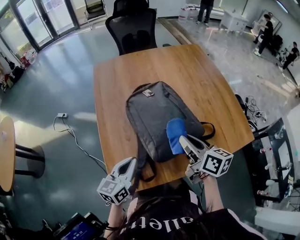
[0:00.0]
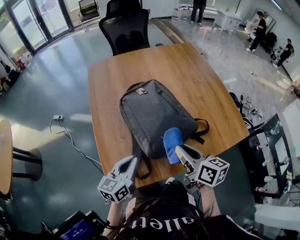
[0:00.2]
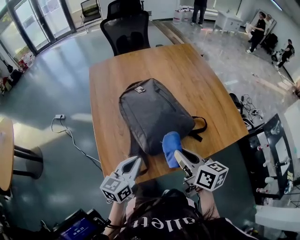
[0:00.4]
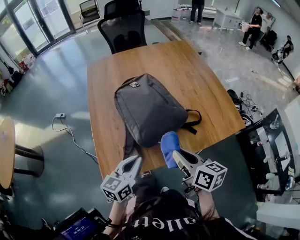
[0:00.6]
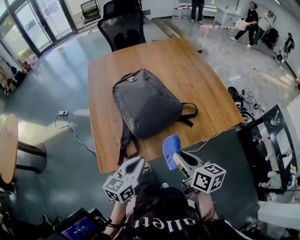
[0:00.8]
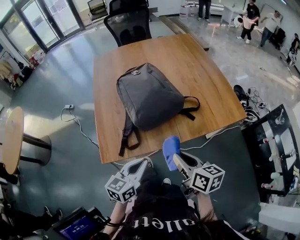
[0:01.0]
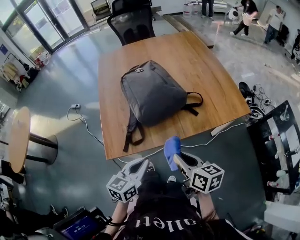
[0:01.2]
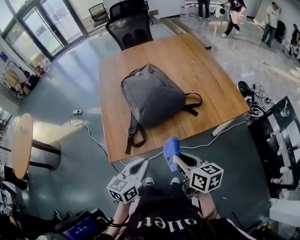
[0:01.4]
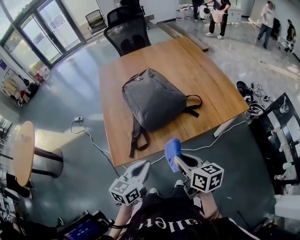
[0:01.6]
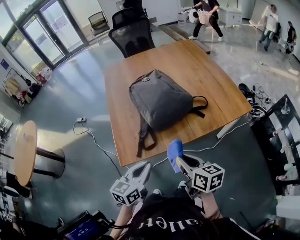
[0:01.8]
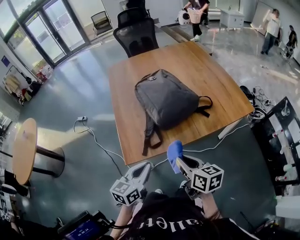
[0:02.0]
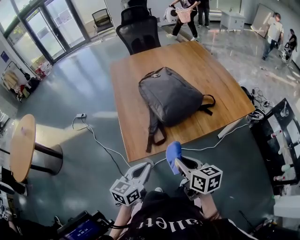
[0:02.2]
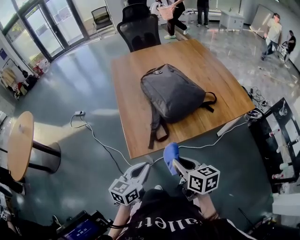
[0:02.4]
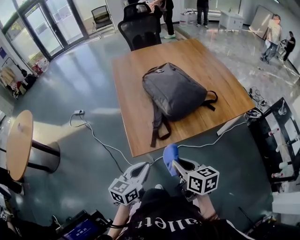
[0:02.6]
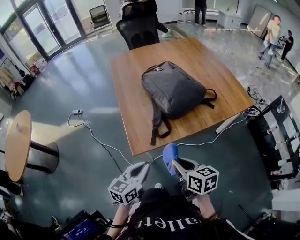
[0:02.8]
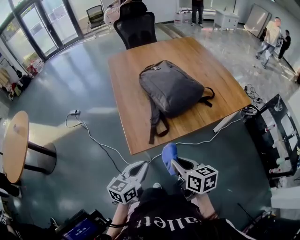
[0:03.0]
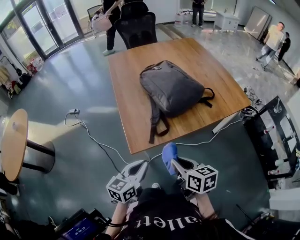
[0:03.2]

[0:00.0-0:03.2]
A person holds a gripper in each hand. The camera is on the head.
0:00.0 to 0:01.6: The left gripper moves backward and to the right, roughly 25 cm; the right gripper goes approximately 25 cm backward.
0:01.6 to 0:03.2: Both grippers travel together to the left and backward, approximately 20 cm.

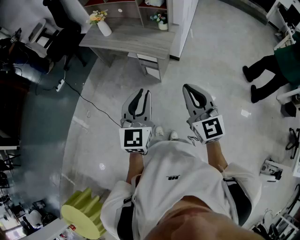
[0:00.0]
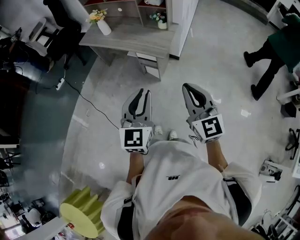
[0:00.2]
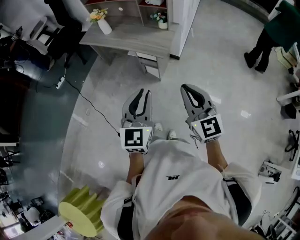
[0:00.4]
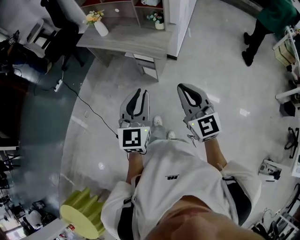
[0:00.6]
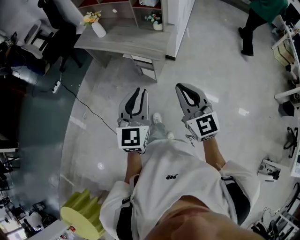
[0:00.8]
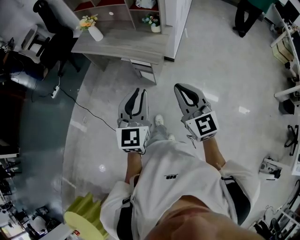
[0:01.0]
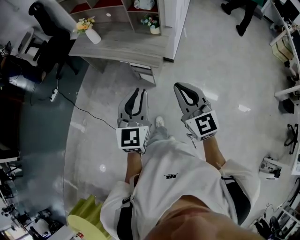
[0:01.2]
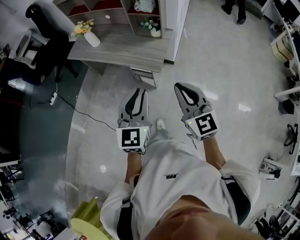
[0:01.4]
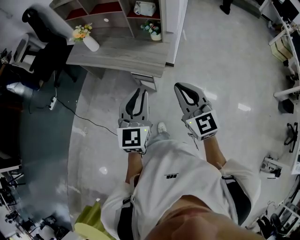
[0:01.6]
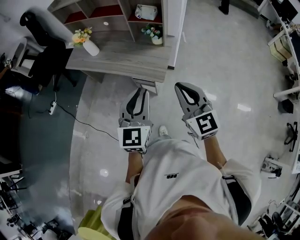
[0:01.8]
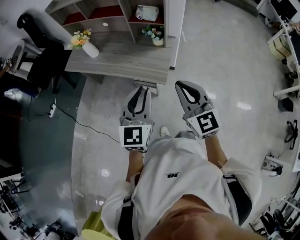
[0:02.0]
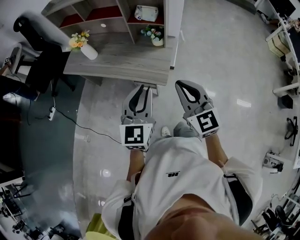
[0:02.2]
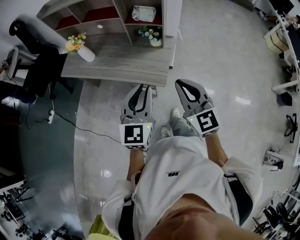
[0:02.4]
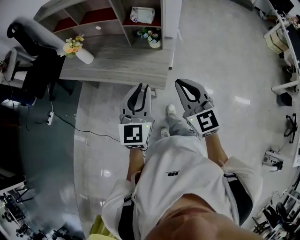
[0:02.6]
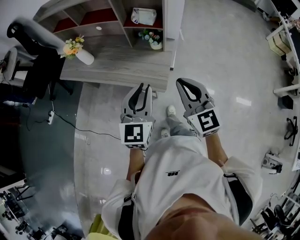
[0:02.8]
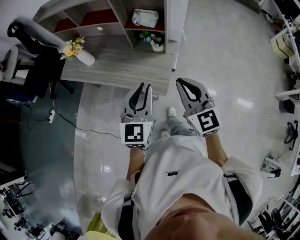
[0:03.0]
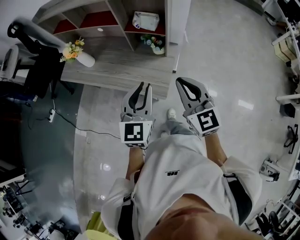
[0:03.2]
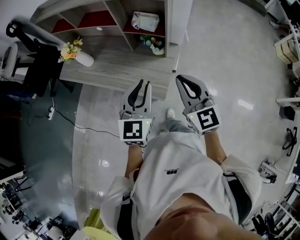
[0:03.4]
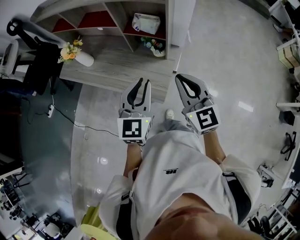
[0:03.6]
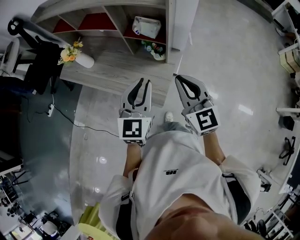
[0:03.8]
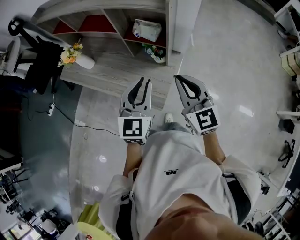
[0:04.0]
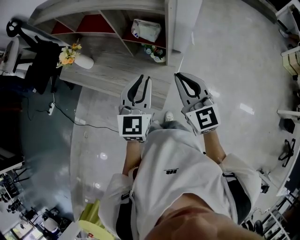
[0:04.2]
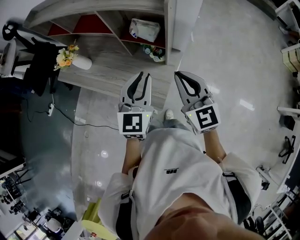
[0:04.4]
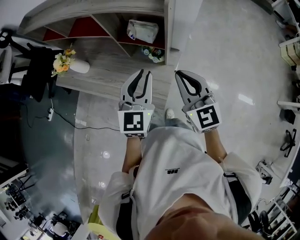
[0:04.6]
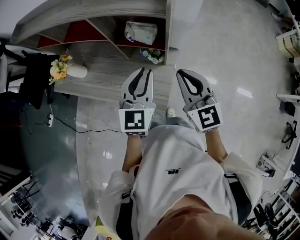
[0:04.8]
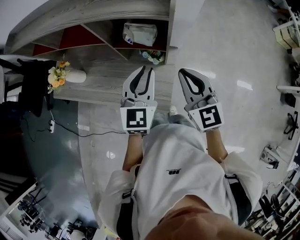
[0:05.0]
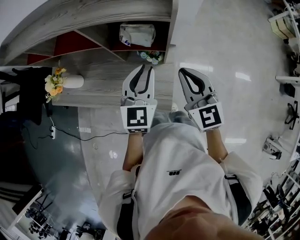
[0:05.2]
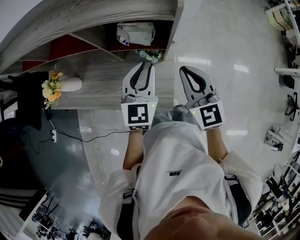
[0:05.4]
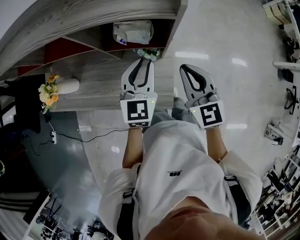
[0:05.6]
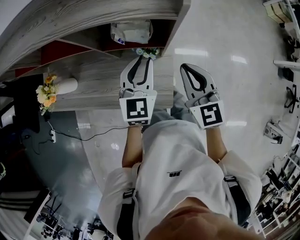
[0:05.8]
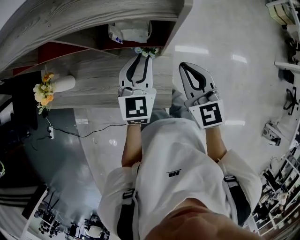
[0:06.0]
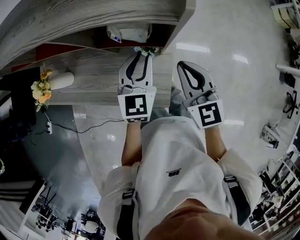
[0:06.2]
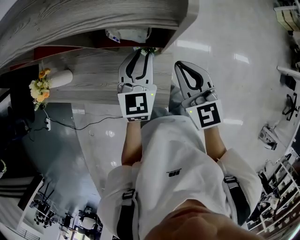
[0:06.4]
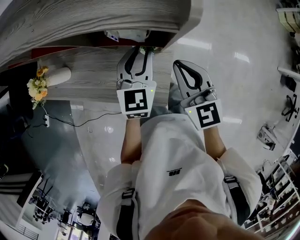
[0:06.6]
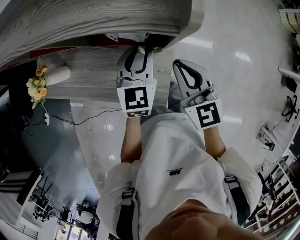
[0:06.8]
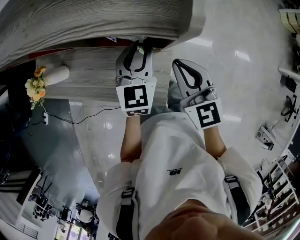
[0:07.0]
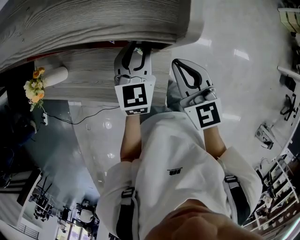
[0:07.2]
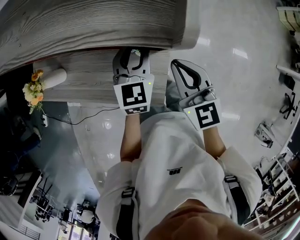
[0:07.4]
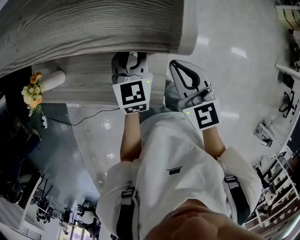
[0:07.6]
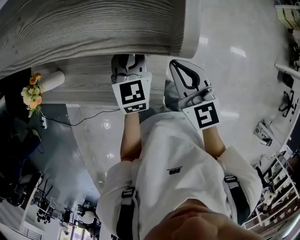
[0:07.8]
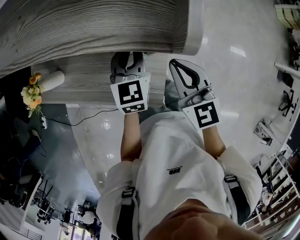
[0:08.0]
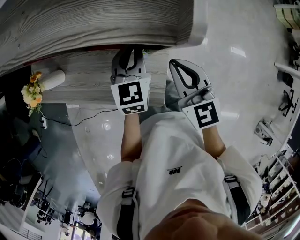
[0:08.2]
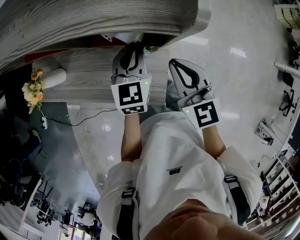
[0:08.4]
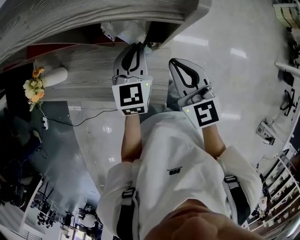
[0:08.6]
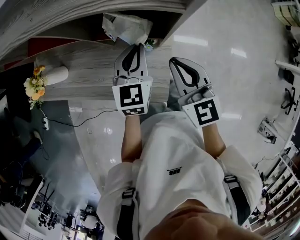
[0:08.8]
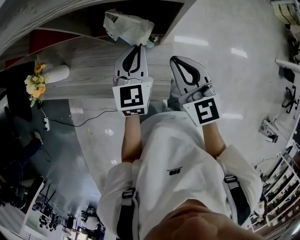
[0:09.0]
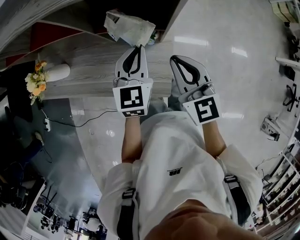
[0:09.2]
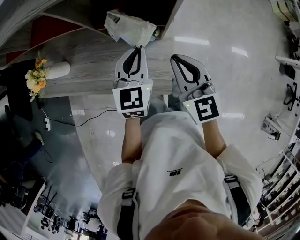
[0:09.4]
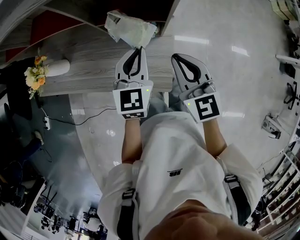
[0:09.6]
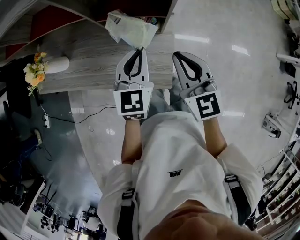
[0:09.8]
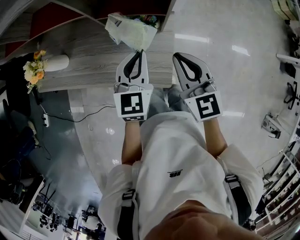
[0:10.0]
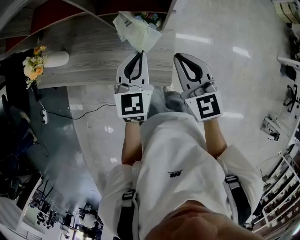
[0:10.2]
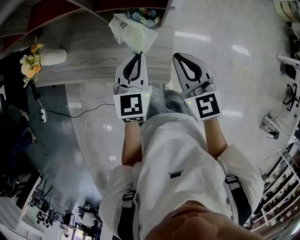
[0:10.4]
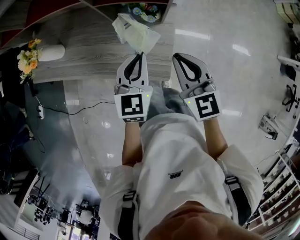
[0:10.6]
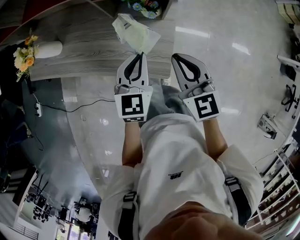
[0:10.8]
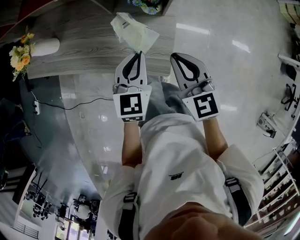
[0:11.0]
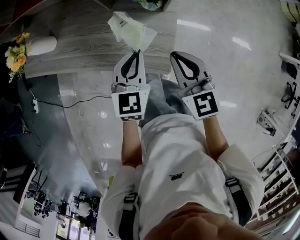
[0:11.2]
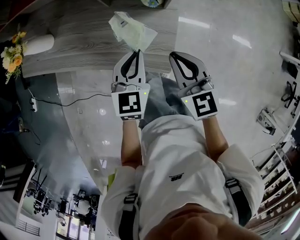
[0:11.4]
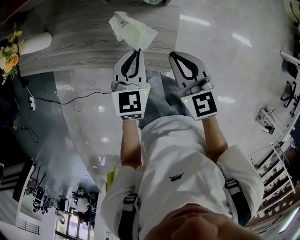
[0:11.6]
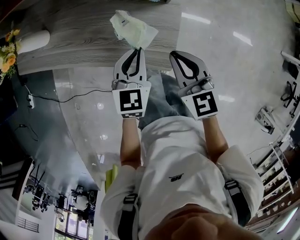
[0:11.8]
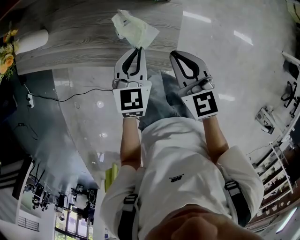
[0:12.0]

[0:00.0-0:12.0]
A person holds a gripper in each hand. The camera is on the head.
0:00.0 to 0:01.6: The grippers both shift forward by roughly 20 cm.
0:01.6 to 0:03.0: The grippers both shift forward by some 20 cm.
0:03.0 to 0:04.4: Both grippers move forward, approximately 15 cm.
0:04.4 to 0:06.0: Both grippers travel together forward and downward, roughly 15 cm. The right gripper changes its angle by approximately 20 degrees.
0:06.0 to 0:07.6: The left gripper moves forward, about 5 cm; the right gripper shifts by some 5 cm.
0:07.6 to 0:09.0: The right gripper shifts by some 5 cm, while the left gripper travels backward by about 5 cm.
0:09.0 to 0:10.4: The two grippers go about 10 cm backward.
0:10.4 to 0:12.0: The two grippers go about 15 cm downward.

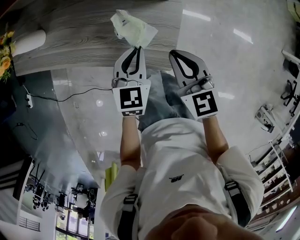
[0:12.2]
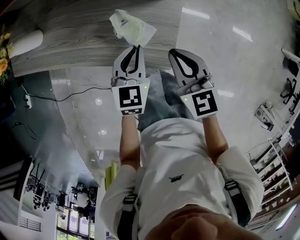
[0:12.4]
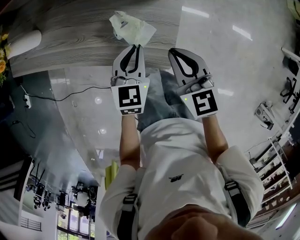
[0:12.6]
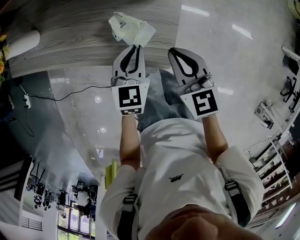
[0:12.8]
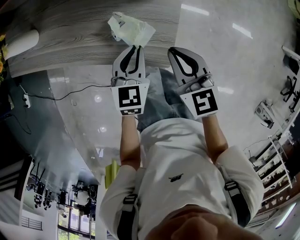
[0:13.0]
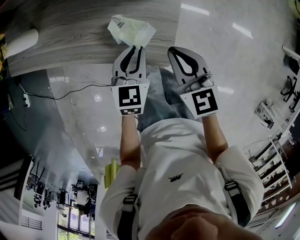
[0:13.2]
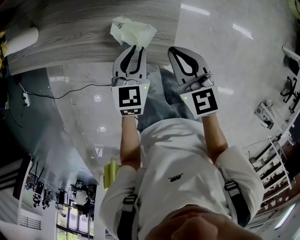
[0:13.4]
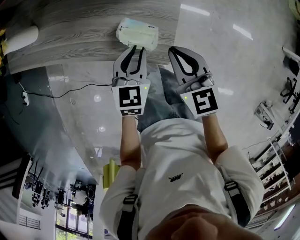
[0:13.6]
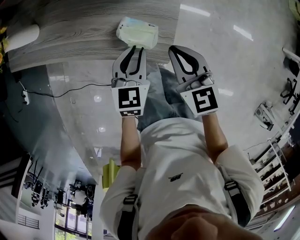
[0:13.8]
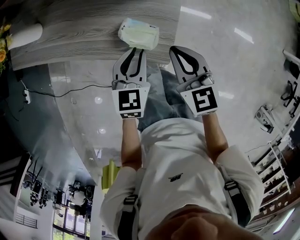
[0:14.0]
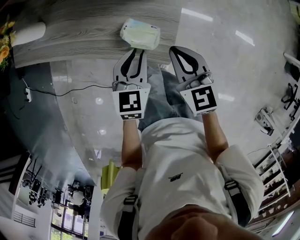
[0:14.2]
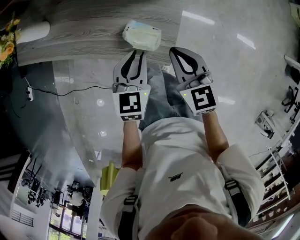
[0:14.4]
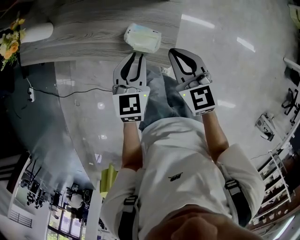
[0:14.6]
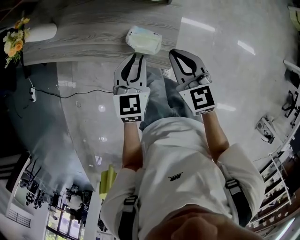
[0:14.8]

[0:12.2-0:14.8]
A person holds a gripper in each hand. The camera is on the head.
0:12.2 to 0:13.4: There are only small adjustments of the grippers.
0:13.4 to 0:14.8: The left gripper travels upward by about 5 cm.

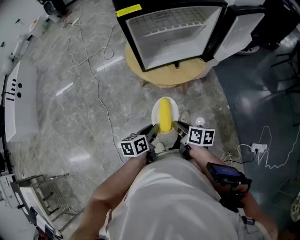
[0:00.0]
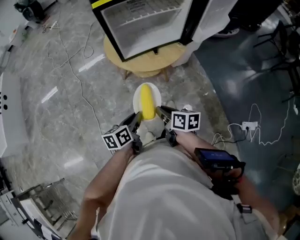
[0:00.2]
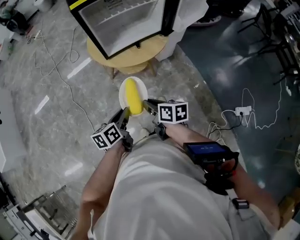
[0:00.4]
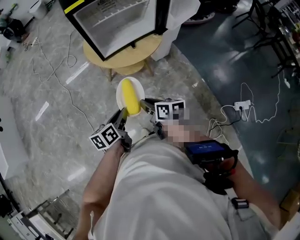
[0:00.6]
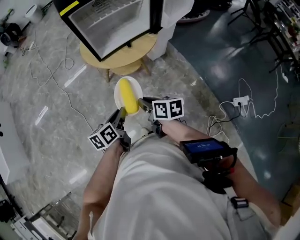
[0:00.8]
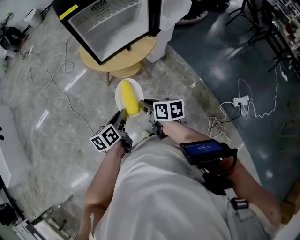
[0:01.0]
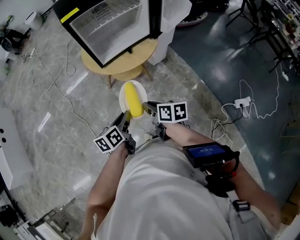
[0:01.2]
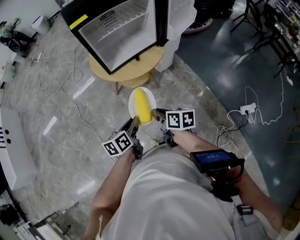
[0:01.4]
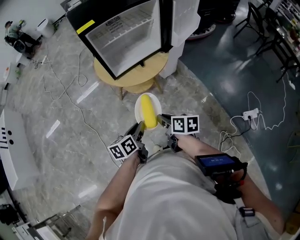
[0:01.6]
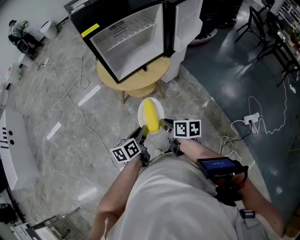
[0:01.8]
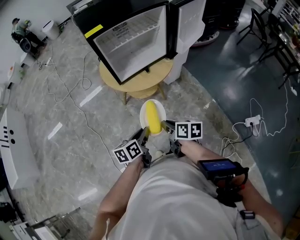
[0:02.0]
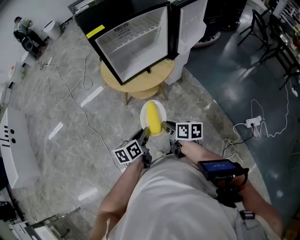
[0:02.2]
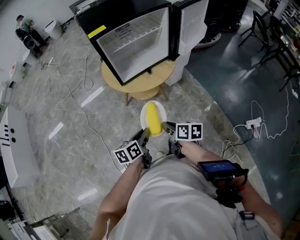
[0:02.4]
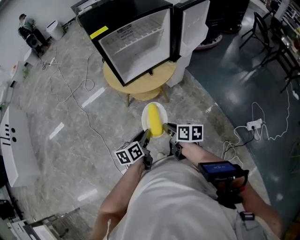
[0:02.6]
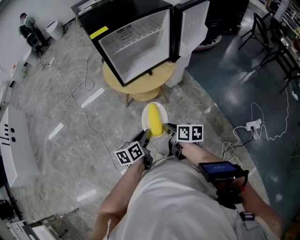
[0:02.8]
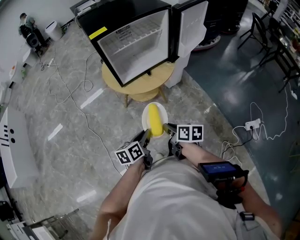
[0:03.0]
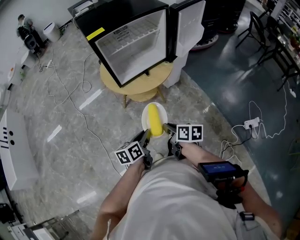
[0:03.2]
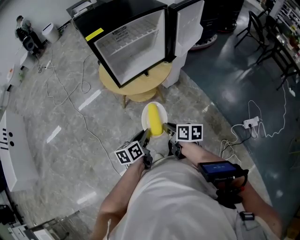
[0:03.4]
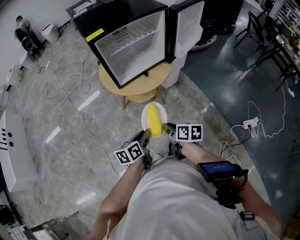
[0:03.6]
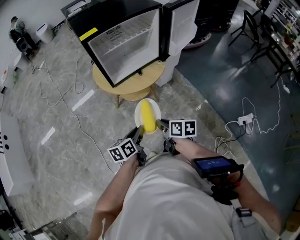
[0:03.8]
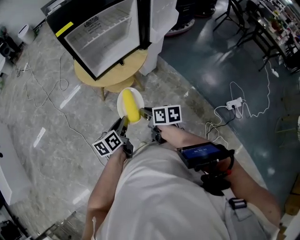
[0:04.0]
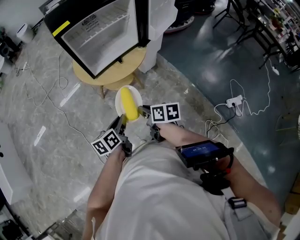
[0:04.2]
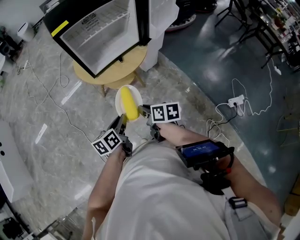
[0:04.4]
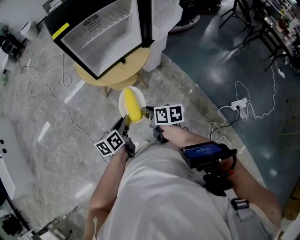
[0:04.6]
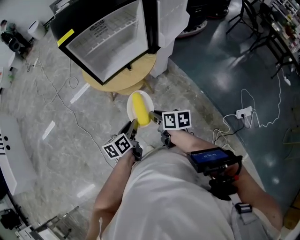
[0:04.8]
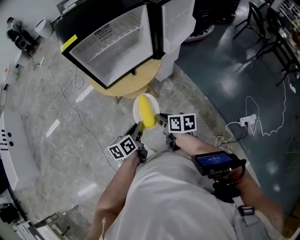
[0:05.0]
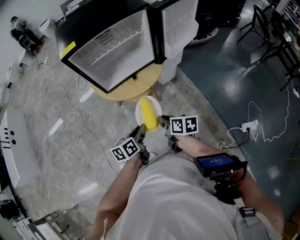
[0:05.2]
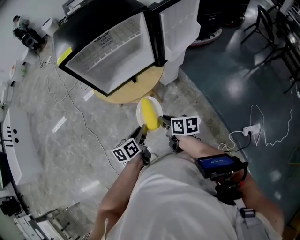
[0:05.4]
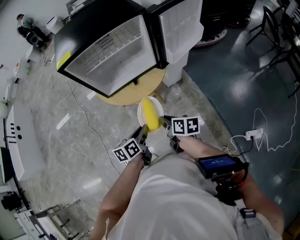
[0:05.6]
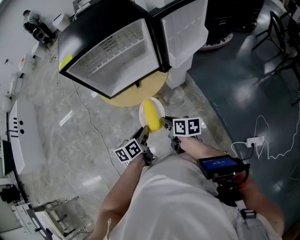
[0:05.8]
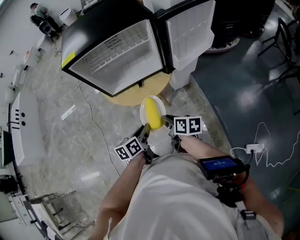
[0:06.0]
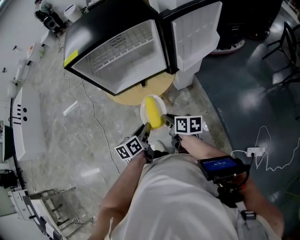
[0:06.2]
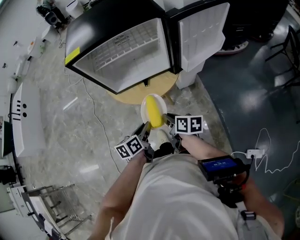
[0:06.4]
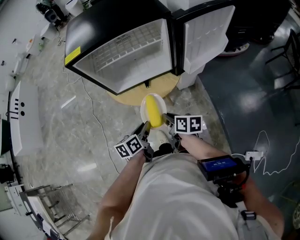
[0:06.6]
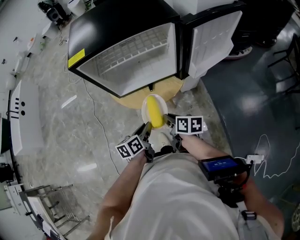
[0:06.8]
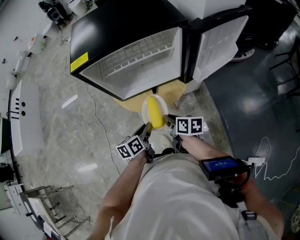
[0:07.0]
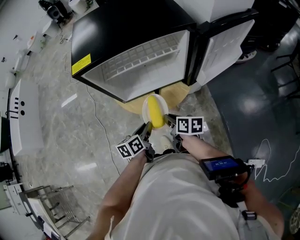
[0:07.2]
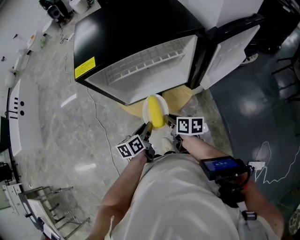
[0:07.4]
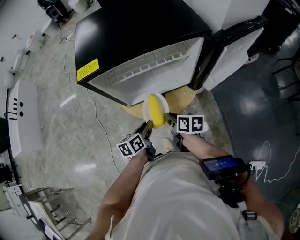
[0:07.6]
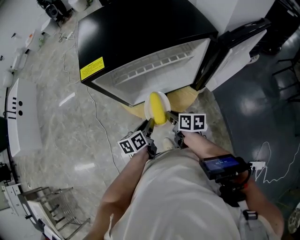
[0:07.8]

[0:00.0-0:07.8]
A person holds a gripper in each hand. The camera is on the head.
0:00.0 to 0:01.6: The grippers make only small movements.
0:01.6 to 0:03.2: Both grippers stay about where they are.
0:03.2 to 0:04.6: The grippers stay close to where they were, moving slightly.
0:04.6 to 0:06.2: Both grippers travel together to the right and forward, about 20 cm.
0:06.2 to 0:07.8: The grippers both shift forward and to the left by approximately 20 cm.
